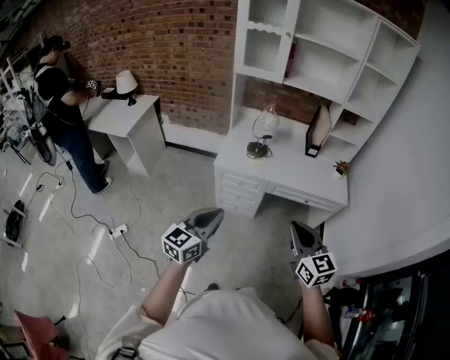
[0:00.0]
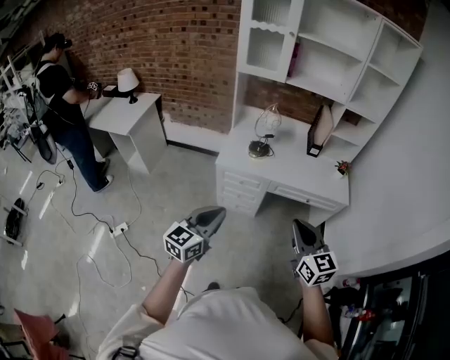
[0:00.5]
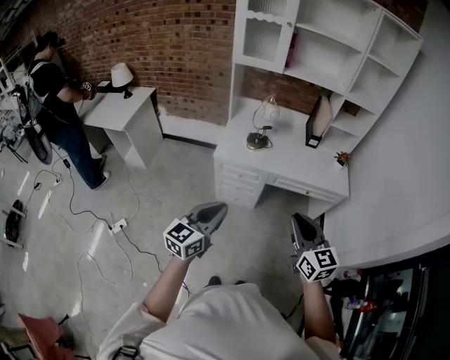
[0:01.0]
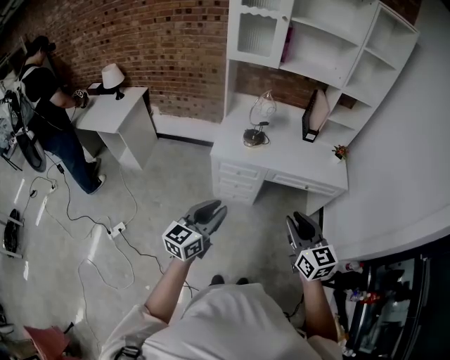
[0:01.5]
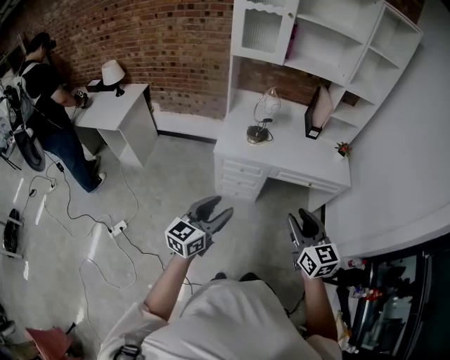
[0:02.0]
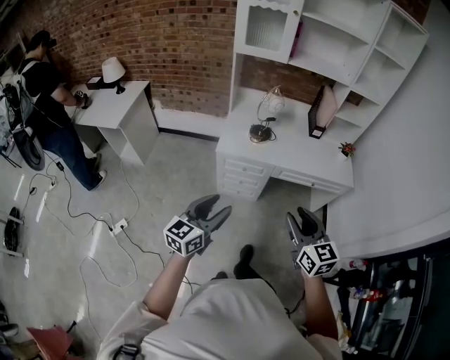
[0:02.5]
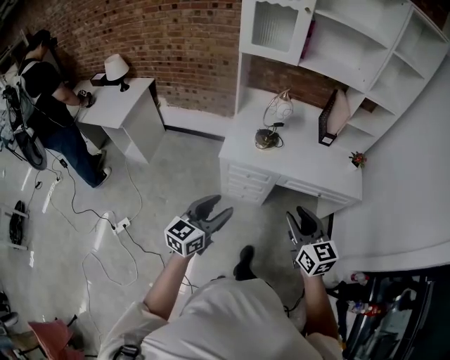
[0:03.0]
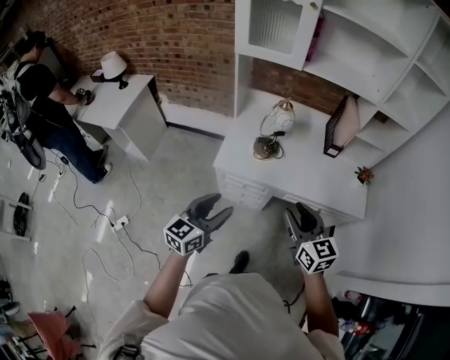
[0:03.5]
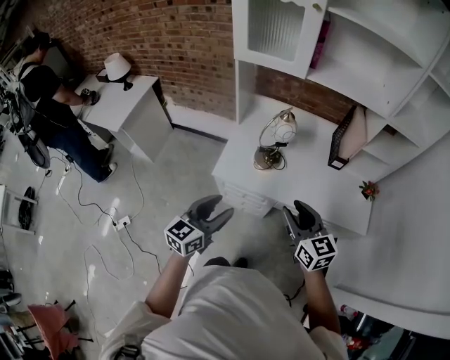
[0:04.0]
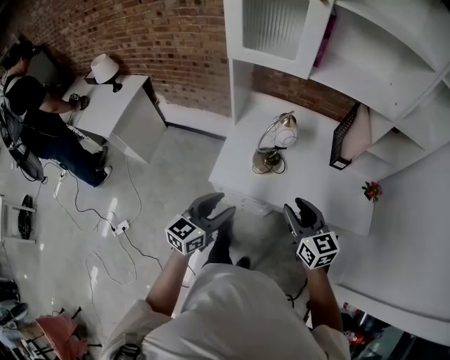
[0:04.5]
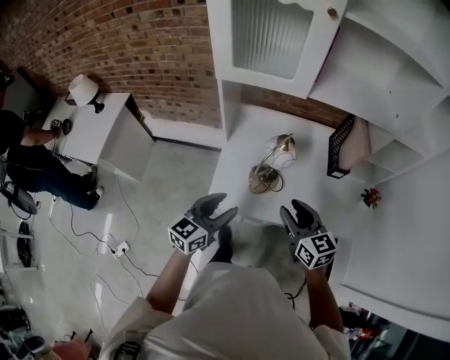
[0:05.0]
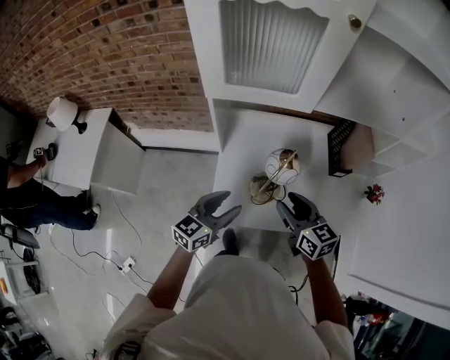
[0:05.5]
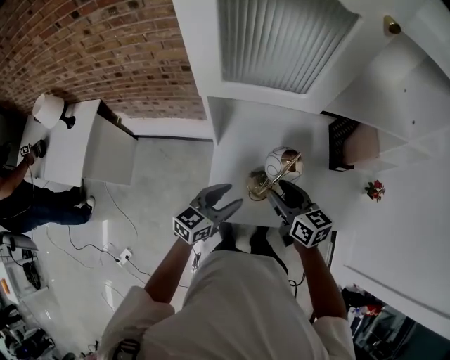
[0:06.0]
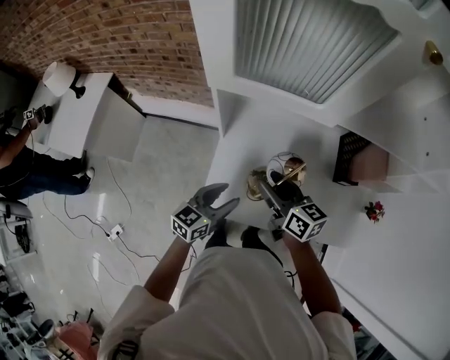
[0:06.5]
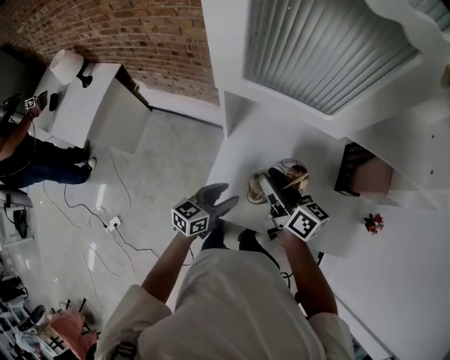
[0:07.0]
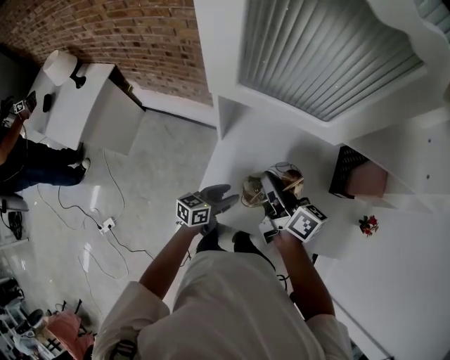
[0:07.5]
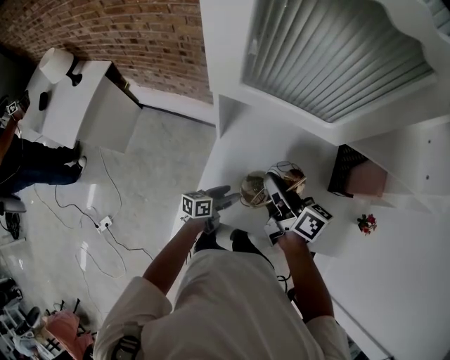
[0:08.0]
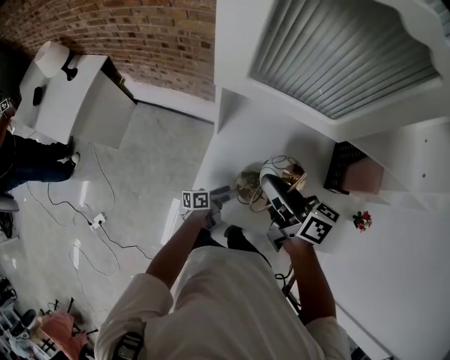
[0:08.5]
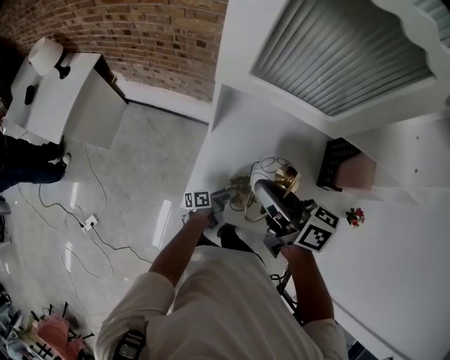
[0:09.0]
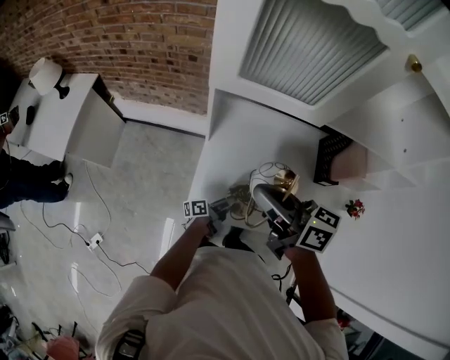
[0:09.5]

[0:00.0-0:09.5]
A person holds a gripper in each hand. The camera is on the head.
0:00.0 to 0:02.0: The left gripper moves about 5 cm, and opens its fingers; the right gripper travels to the left by approximately 5 cm, and opens its fingers.
0:02.0 to 0:04.0: Both grippers travel together forward, some 35 cm.
0:04.0 to 0:05.5: The right gripper is displaced forward and to the left by about 30 cm, while the left gripper is displaced forward by about 30 cm.
0:05.5 to 0:07.5: The left gripper moves downward and forward, some 20 cm, and rotates some 30 degrees. Meanwhile the right gripper shifts about 15 cm forward, turns by some 40 degrees, and closes its fingers.
0:07.5 to 0:09.5: The right gripper is displaced upward, backward and to the left by roughly 15 cm; the left gripper travels downward and backward by some 10 cm, and rotates around the line of its fingers by about 40 degrees, counterclockwise from behind.

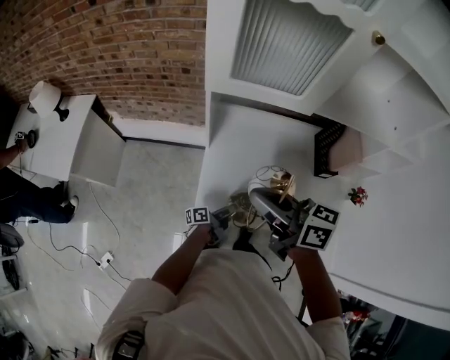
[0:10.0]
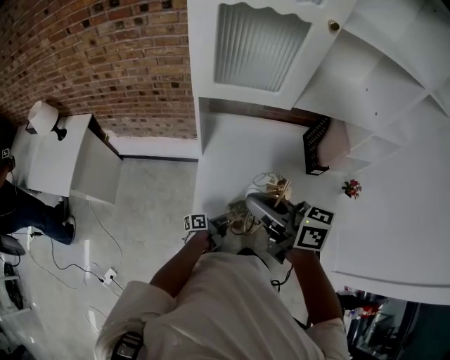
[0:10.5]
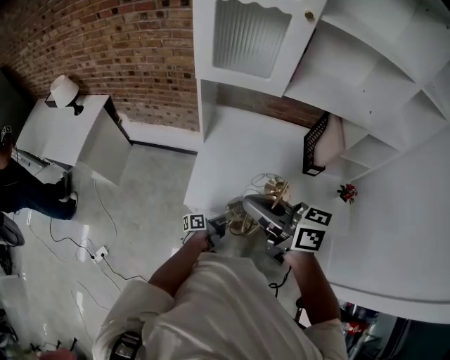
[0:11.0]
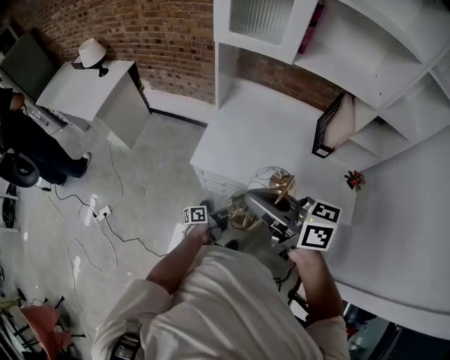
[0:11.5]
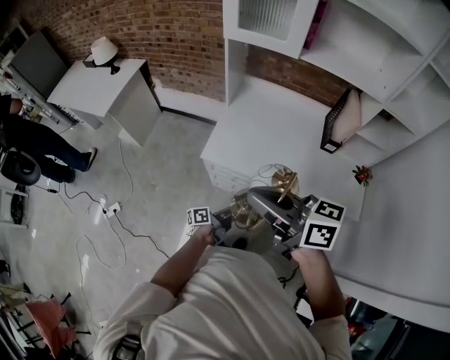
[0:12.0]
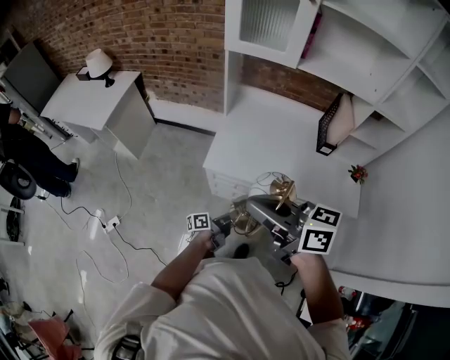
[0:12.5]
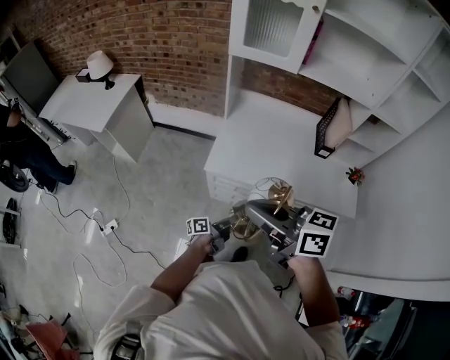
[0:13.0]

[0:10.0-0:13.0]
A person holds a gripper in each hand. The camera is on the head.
0:10.0 to 0:11.5: Both grippers move backward, roughly 30 cm.
0:11.5 to 0:13.0: The grippers both shift to the left by roughly 10 cm.

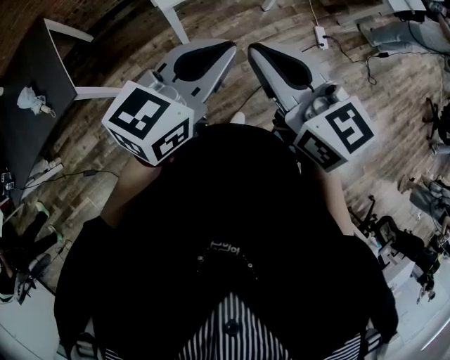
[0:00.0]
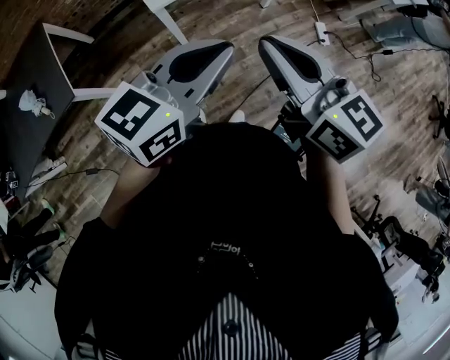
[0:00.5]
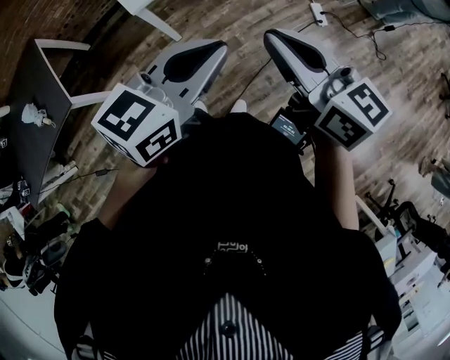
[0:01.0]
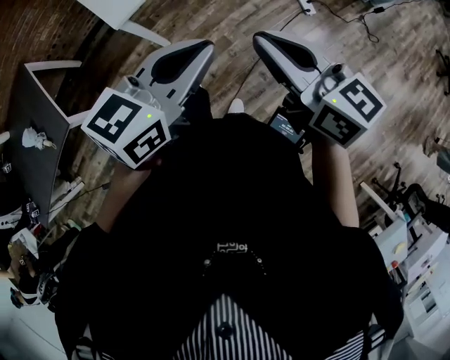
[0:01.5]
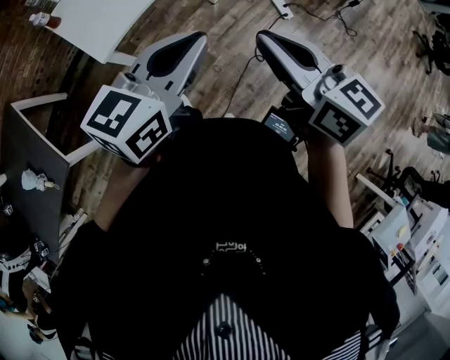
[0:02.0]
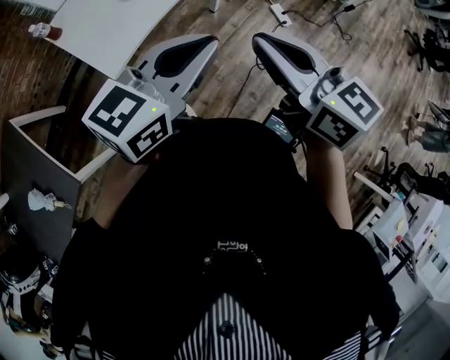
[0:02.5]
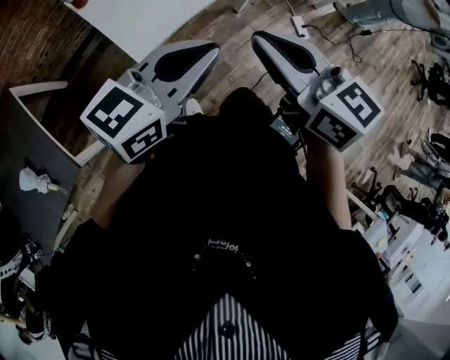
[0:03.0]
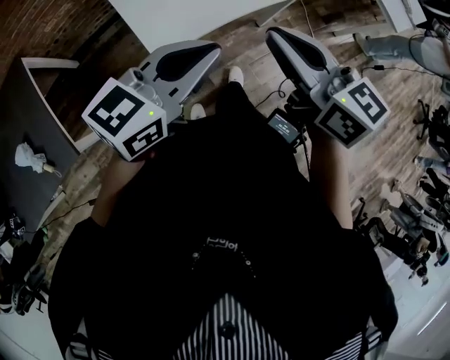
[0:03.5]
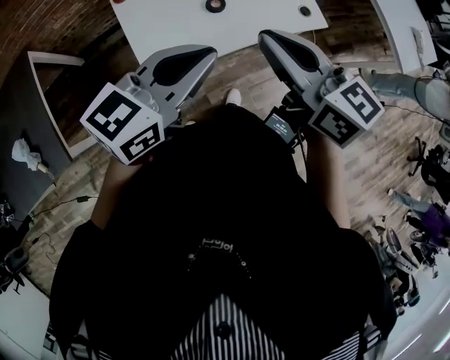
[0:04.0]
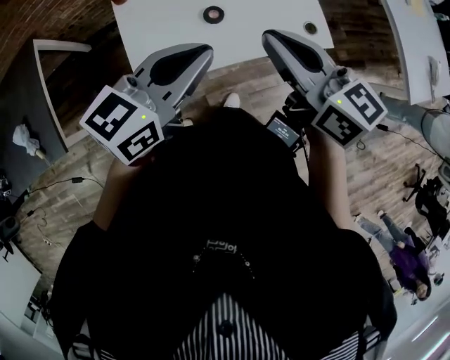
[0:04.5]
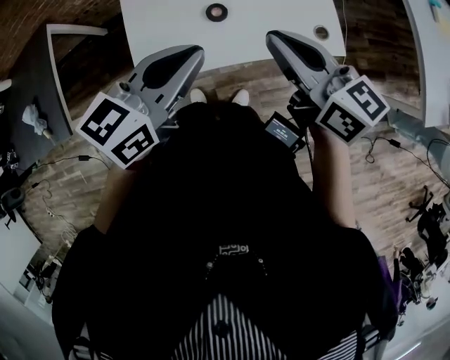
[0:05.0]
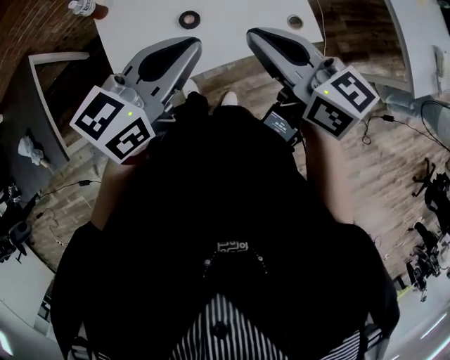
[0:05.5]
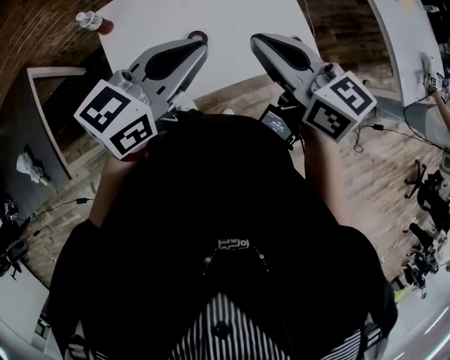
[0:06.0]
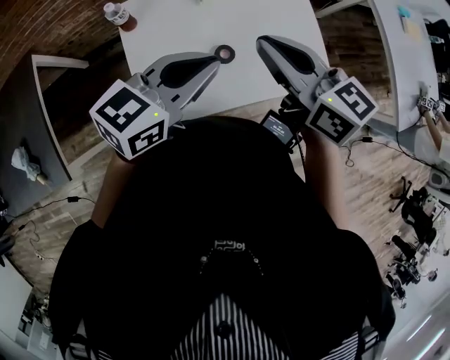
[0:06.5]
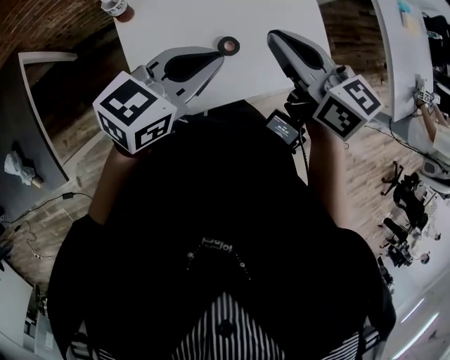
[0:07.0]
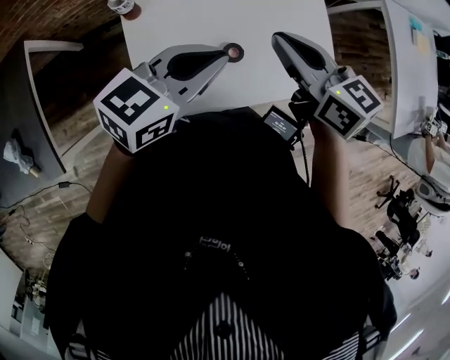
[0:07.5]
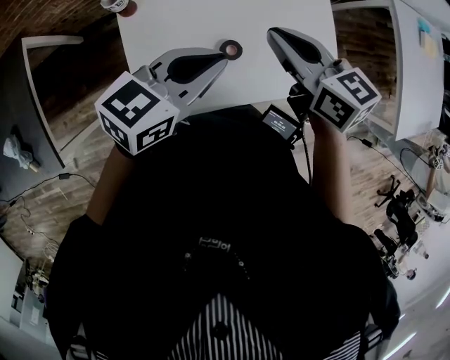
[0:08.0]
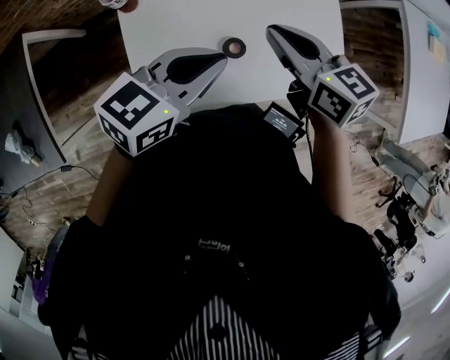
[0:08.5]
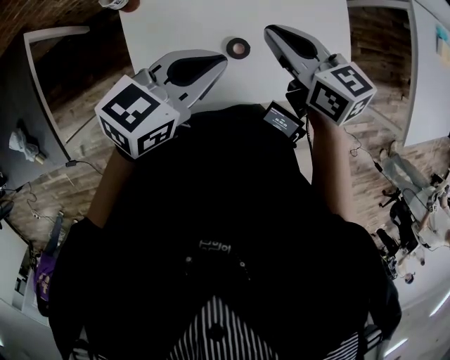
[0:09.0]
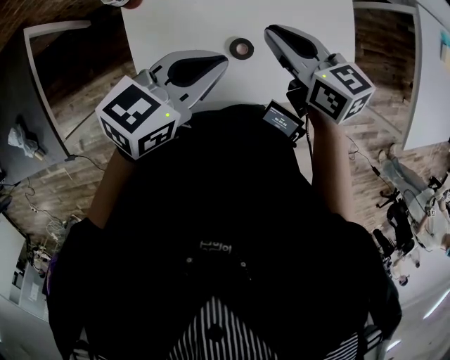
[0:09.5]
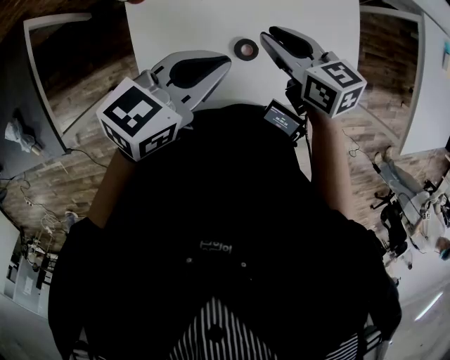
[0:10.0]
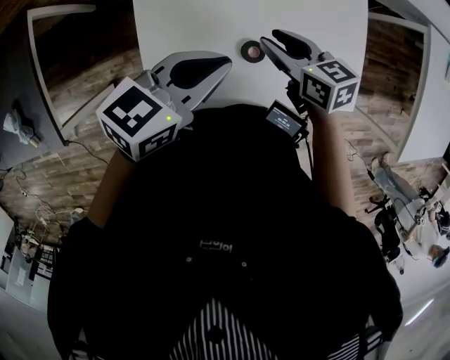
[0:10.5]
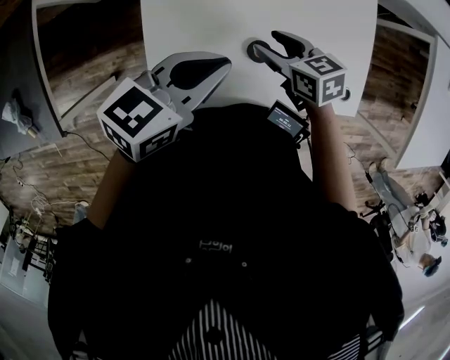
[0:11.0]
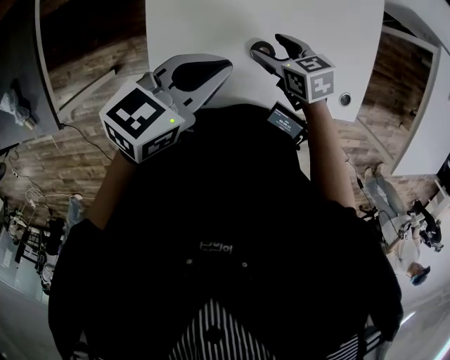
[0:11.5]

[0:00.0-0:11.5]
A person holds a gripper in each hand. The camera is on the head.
0:00.0 to 0:02.0: The grippers both shift to the right and forward by approximately 15 cm. The right gripper changes its angle by about 20 degrees.
0:02.0 to 0:04.0: The left gripper travels to the left and forward by approximately 25 cm. The right gripper goes about 35 cm forward and to the left, and swivels approximately 30 degrees.
0:04.0 to 0:06.0: Both grippers move forward and to the right, some 15 cm.
0:06.0 to 0:07.5: The left gripper shifts approximately 10 cm to the left and forward, while the right gripper goes some 15 cm forward and to the left.
0:07.5 to 0:09.5: The left gripper changes place by some 5 cm; the right gripper heads downward, covering roughly 10 cm.
0:09.5 to 0:11.5: The right gripper is displaced downward by approximately 15 cm, turns by some 30 degrees, and opens.

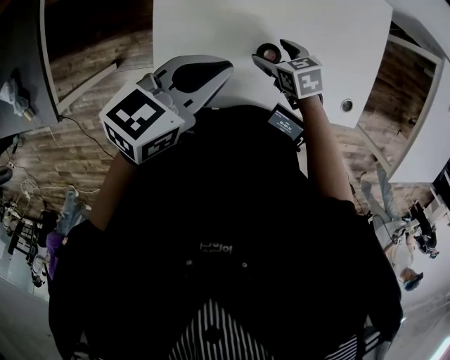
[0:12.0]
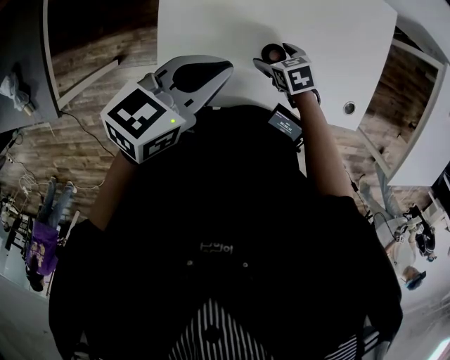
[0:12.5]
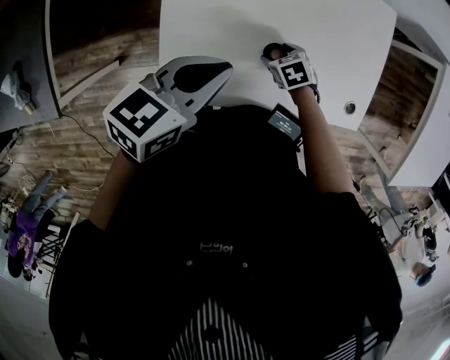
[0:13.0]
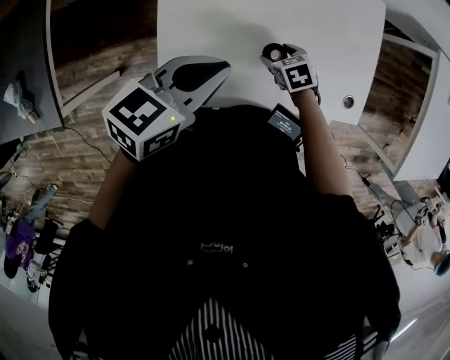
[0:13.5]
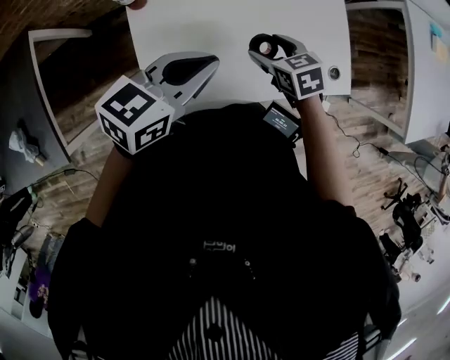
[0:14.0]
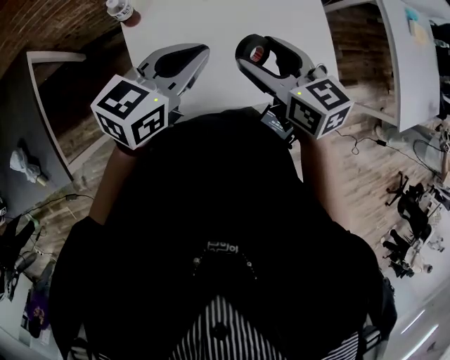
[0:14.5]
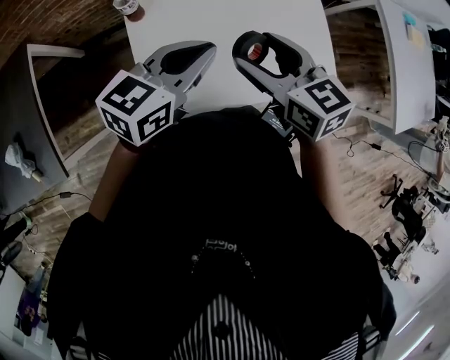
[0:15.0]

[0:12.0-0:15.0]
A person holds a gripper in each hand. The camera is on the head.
0:13.5 to 0:15.0: The left gripper goes some 5 cm upward, while the right gripper goes about 30 cm upward, and tilts its fingers some 40 degrees upward.
